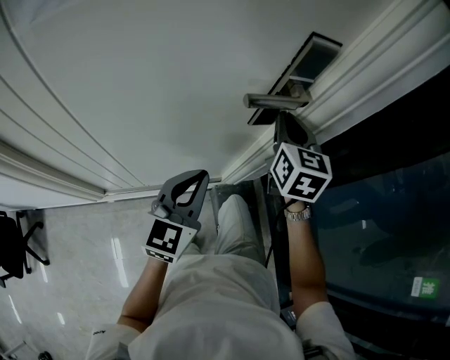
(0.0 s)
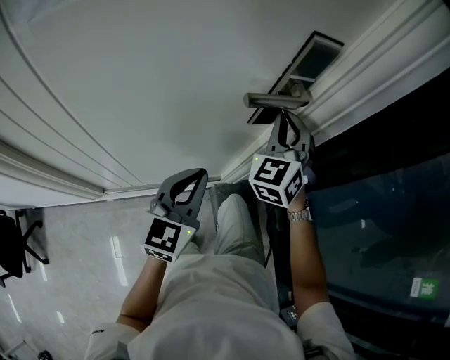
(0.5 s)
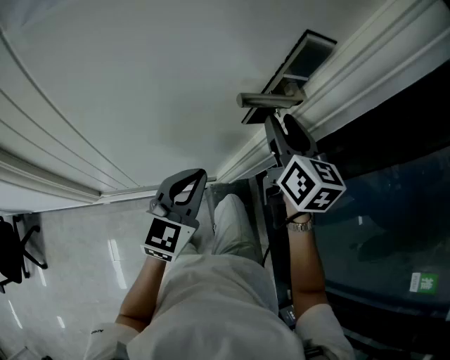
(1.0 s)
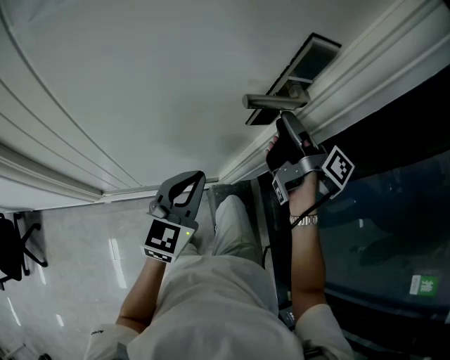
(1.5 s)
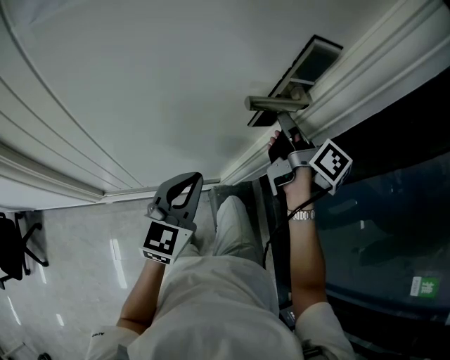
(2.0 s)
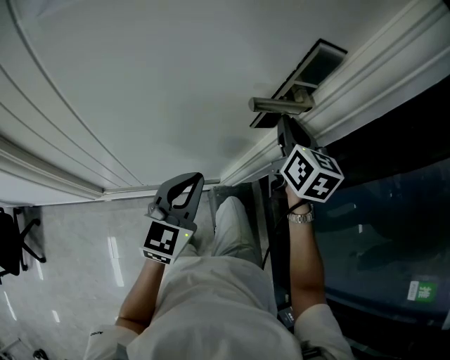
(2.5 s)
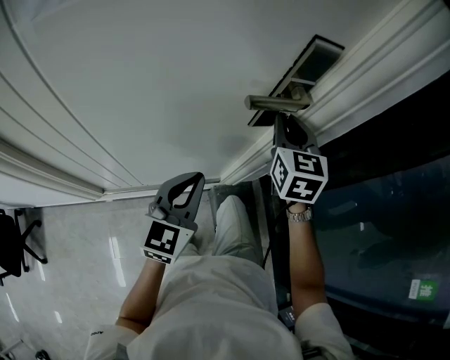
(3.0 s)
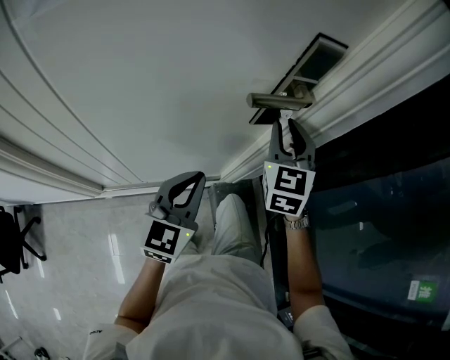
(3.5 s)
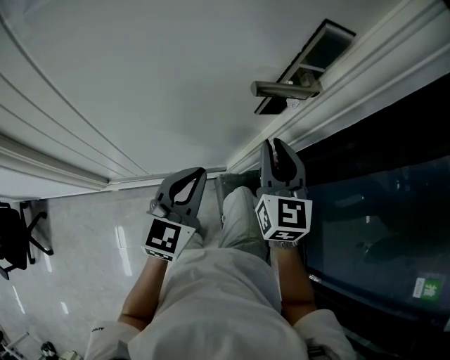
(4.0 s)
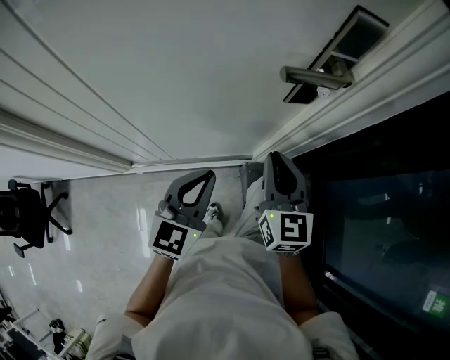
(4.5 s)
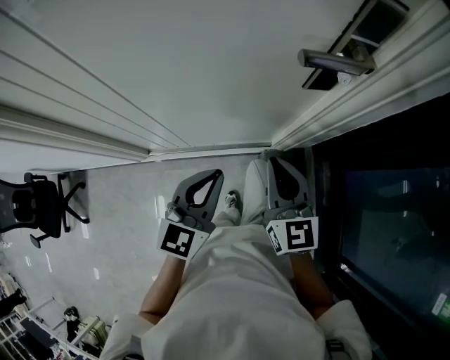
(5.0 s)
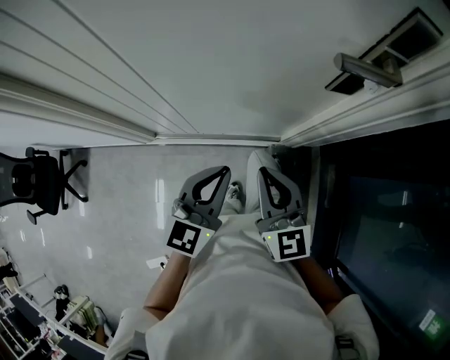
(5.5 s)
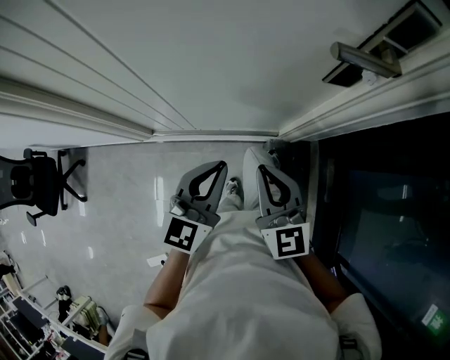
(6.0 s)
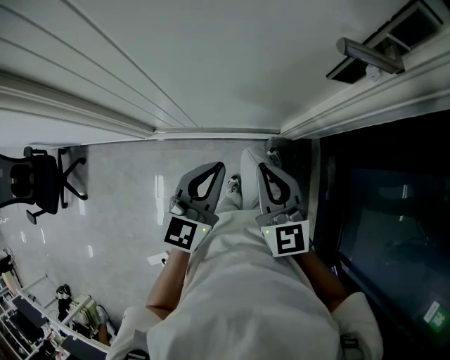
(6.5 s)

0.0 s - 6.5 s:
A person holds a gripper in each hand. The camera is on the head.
0.0 s - 2.0 s: The right gripper rolls clockwise, seen from behind, by approximately 60 degrees, and opens, then closes once more.
2.0 s - 4.5 s: The right gripper travels backward and downward by some 15 cm, and rolls counterclockwise, seen from behind, by roughly 60 degrees; the left gripper shifts by some 5 cm.
4.5 s - 6.5 s: The right gripper is displaced to the left, backward and downward by some 15 cm, and rotates about 20 degrees. The left gripper changes place by roughly 5 cm.

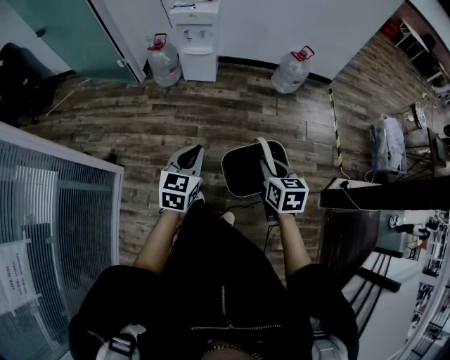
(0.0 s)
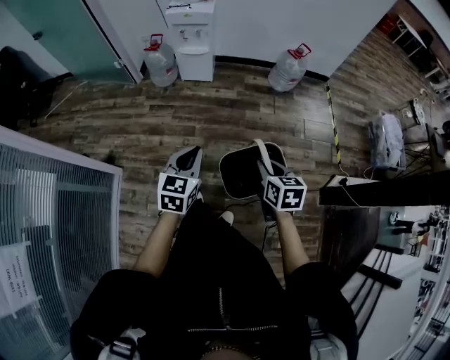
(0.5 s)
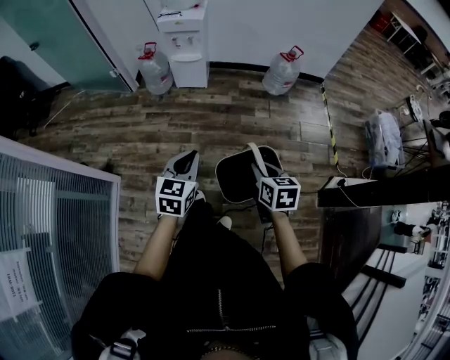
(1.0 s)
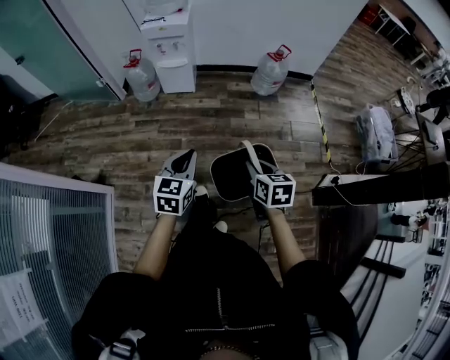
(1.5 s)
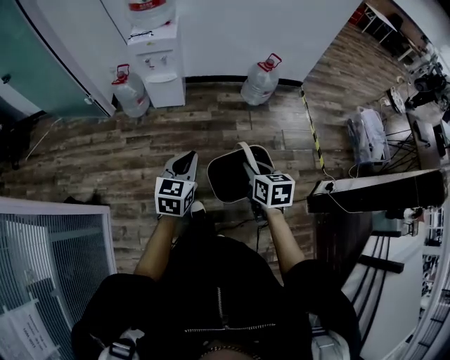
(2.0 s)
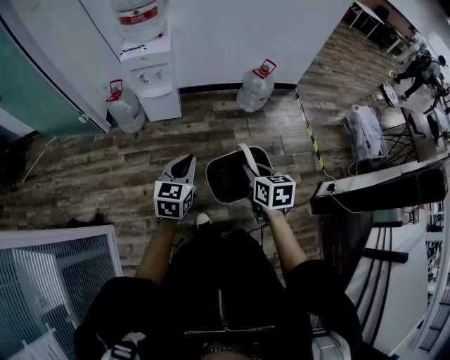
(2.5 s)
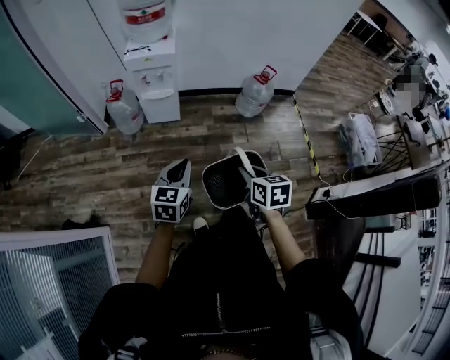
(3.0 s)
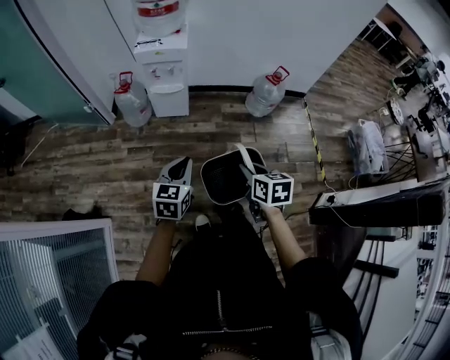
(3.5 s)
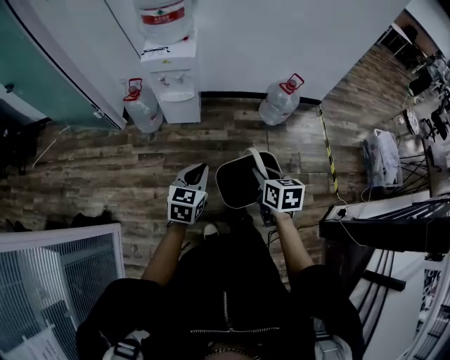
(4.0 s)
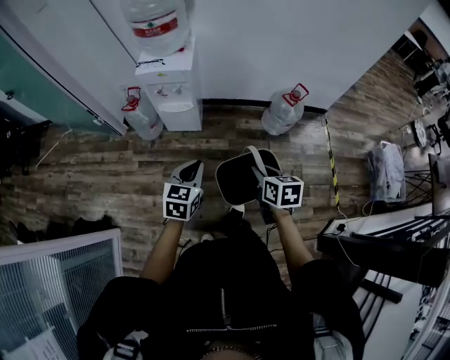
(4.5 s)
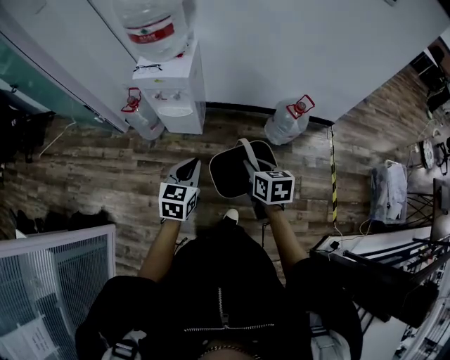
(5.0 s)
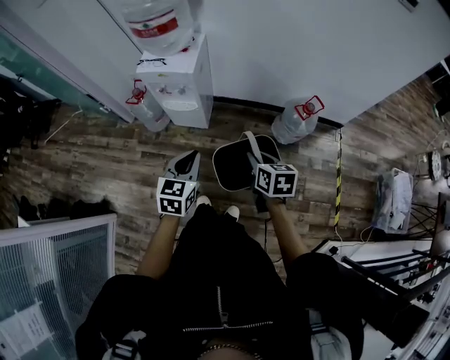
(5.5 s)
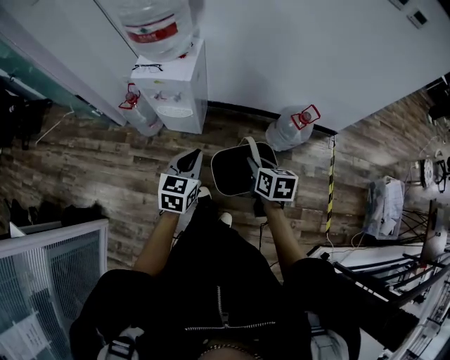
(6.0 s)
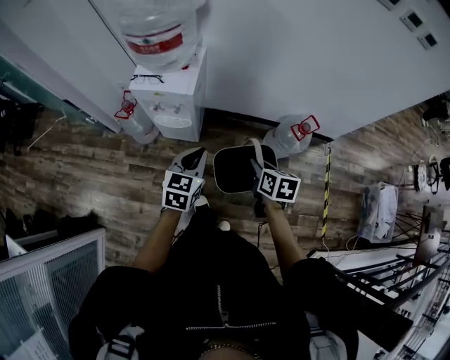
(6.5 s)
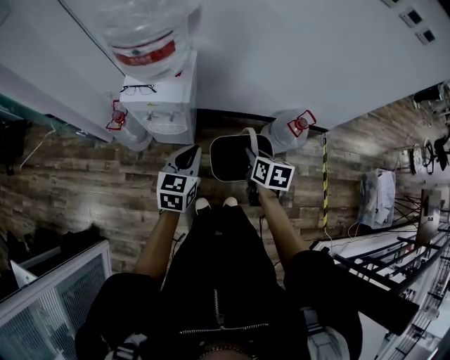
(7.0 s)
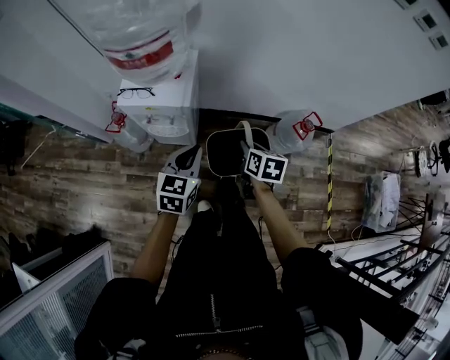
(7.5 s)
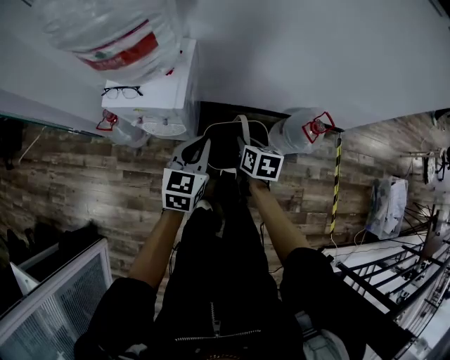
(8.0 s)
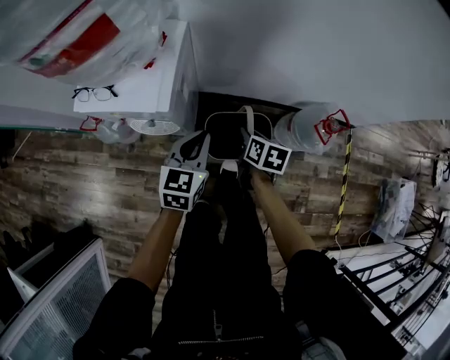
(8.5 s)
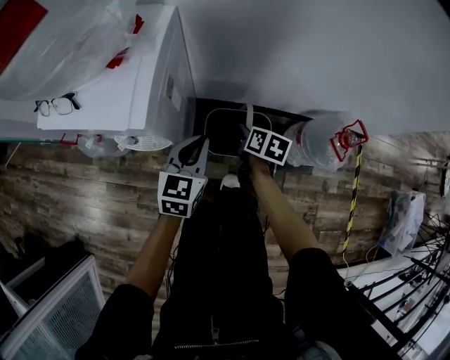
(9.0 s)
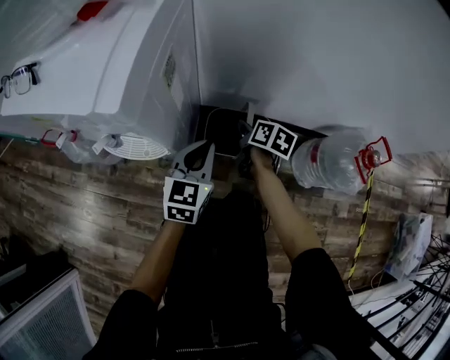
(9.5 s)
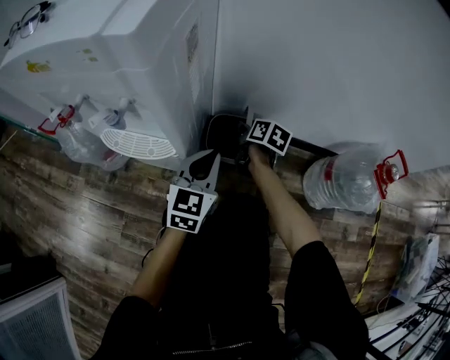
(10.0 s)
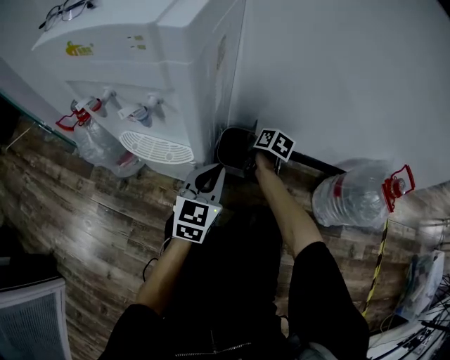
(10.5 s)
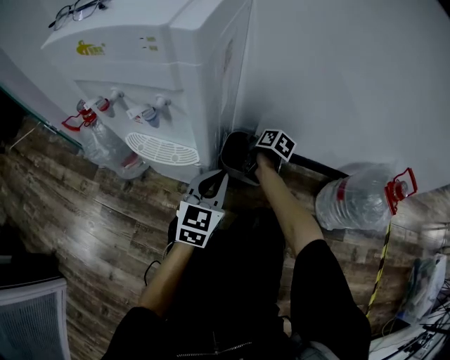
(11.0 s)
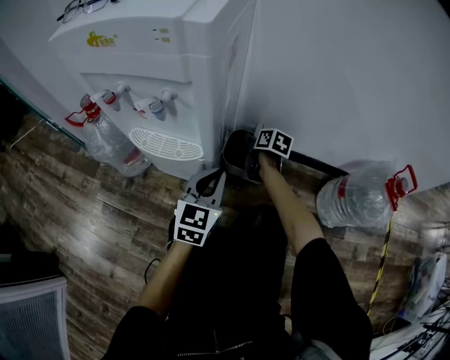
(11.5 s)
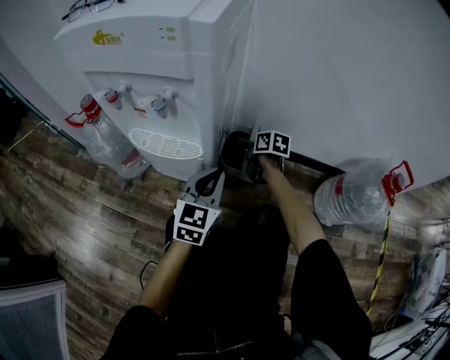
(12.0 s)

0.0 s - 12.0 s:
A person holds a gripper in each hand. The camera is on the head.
0.0 s - 2.0 s: The left gripper goes approximately 15 cm forward and to the right; the right gripper heads forward, covering about 10 cm.
2.0 s - 4.0 s: The two grippers go approximately 15 cm forward.
4.0 s - 6.0 s: The grippers both shift forward by roughly 25 cm.
6.0 s - 8.0 s: The left gripper travels forward by about 20 cm. Meanwhile the right gripper moves forward and downward, some 30 cm.
8.0 s - 10.0 s: The right gripper goes roughly 50 cm downward and forward. The left gripper heads downward, covering some 40 cm.
10.0 s - 12.0 s: The left gripper shifts by approximately 5 cm. Meanwhile the right gripper shifts approximately 5 cm to the left, and opens its fingers.

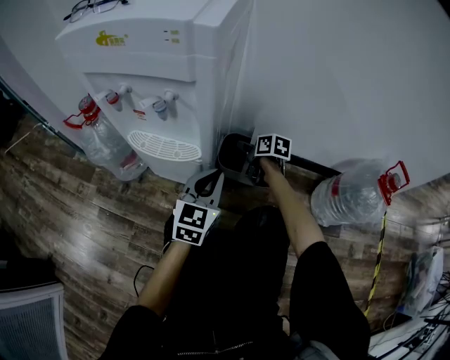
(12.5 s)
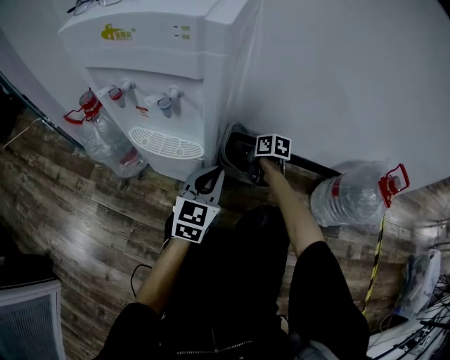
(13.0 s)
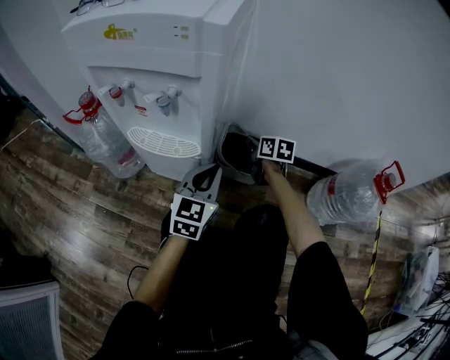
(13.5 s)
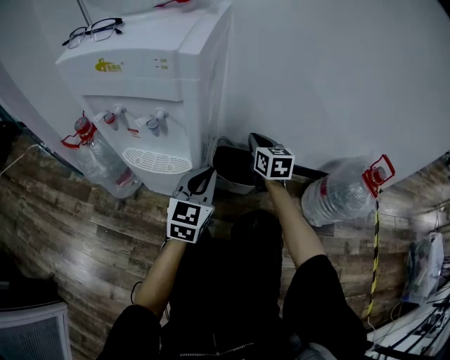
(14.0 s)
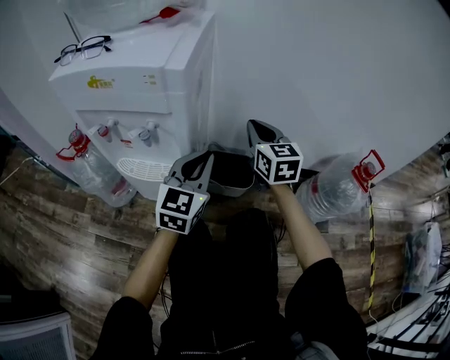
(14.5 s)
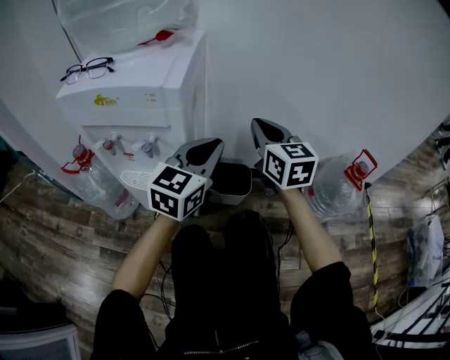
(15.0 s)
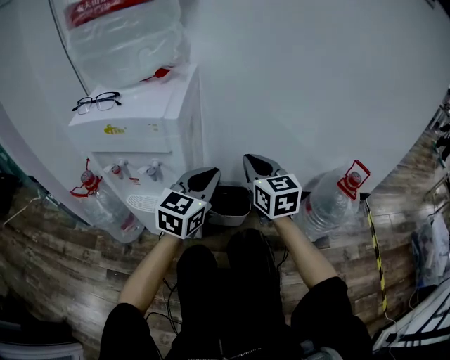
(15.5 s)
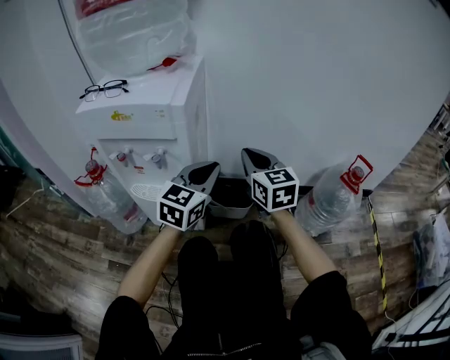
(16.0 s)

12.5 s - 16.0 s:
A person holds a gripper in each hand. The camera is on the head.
12.5 s - 14.5 s: The right gripper is displaced upward by roughly 30 cm, turns by roughly 50 degrees, and closes up. Meanwhile the left gripper heads upward, covering about 15 cm.
14.5 s - 16.0 s: The right gripper is displaced backward and upward by some 10 cm. The left gripper heads upward, covering about 5 cm.

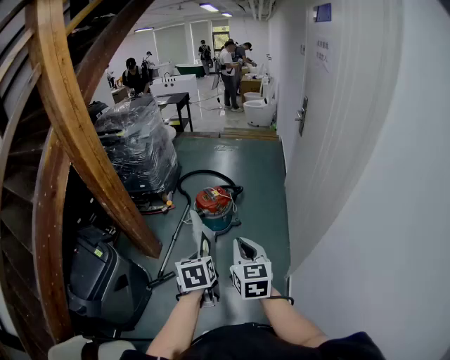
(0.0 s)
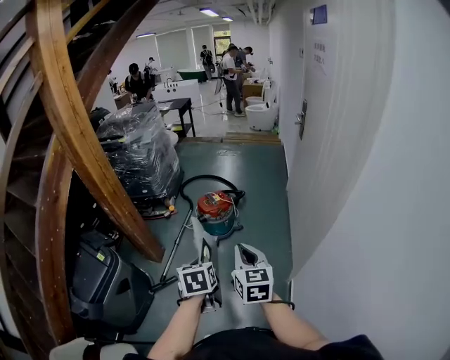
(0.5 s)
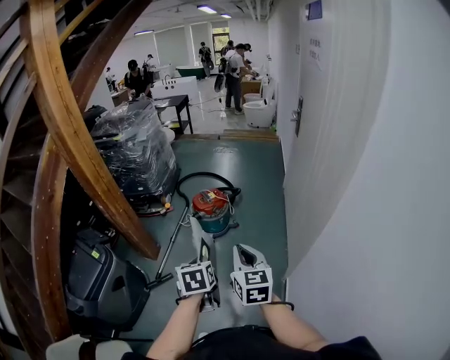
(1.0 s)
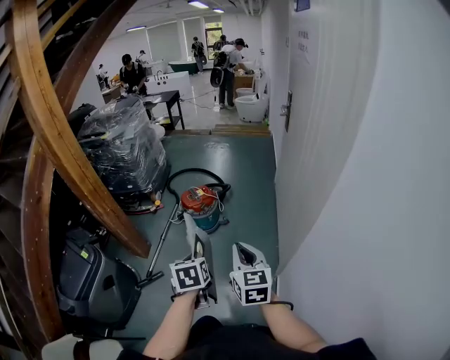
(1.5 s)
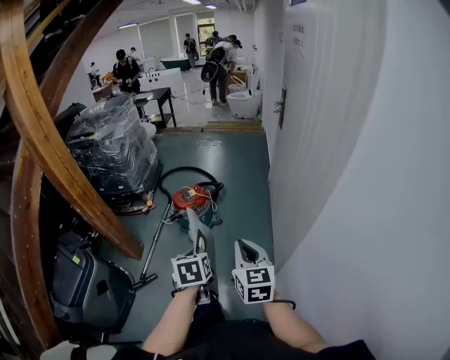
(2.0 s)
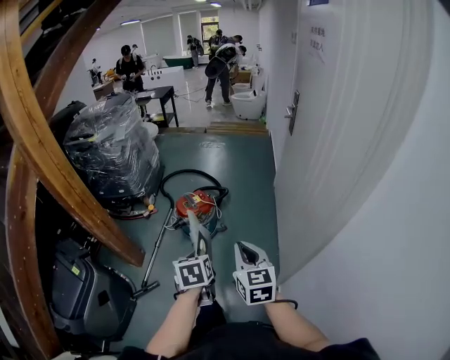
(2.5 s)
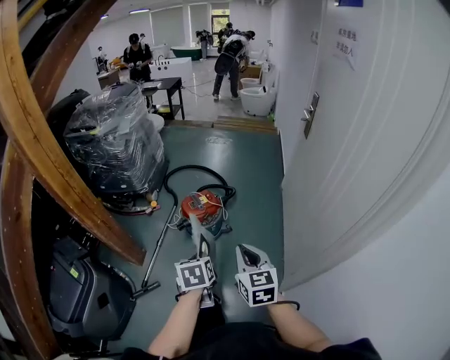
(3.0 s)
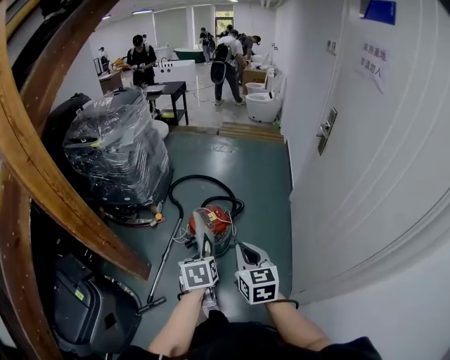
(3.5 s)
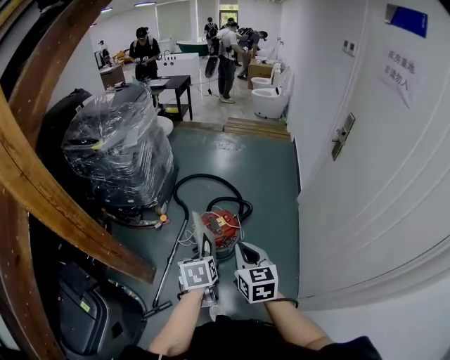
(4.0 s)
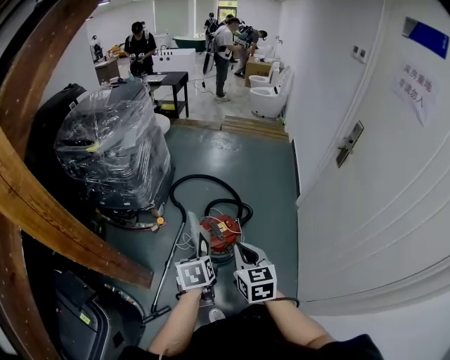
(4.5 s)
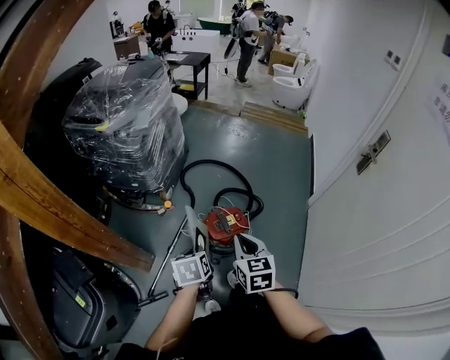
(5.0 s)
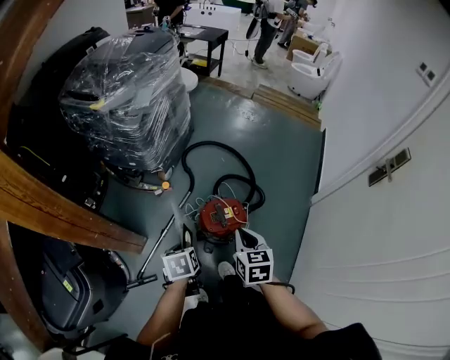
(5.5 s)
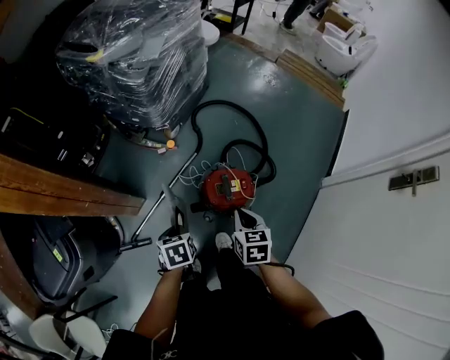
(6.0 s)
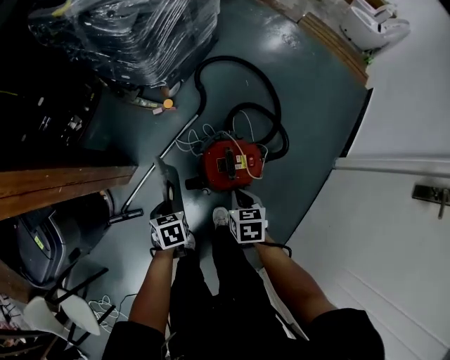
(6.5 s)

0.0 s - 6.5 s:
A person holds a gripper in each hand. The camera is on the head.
0.0 s - 2.0 s: The grippers both shift to the right by approximately 15 cm.
2.0 s - 4.5 s: Both grippers are carried forward and to the left, about 50 cm.
4.5 s - 6.5 s: The two grippers go some 35 cm downward. The right gripper points its fingers some 30 degrees further downward; the left gripper swivels approximately 30 degrees.
